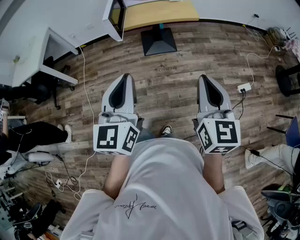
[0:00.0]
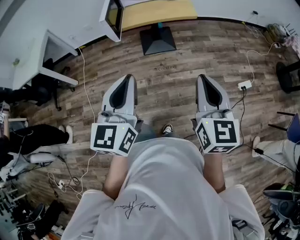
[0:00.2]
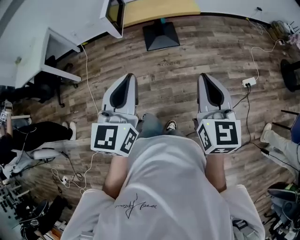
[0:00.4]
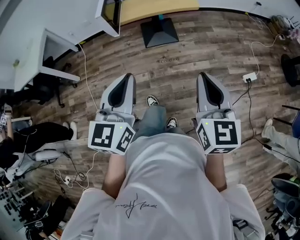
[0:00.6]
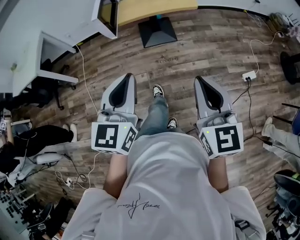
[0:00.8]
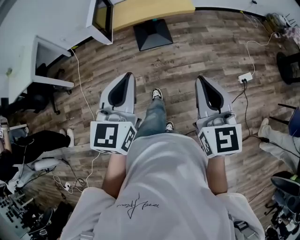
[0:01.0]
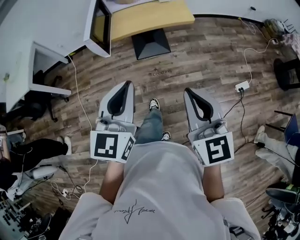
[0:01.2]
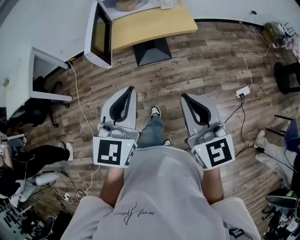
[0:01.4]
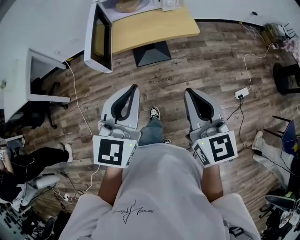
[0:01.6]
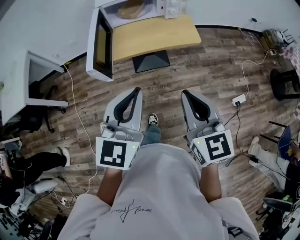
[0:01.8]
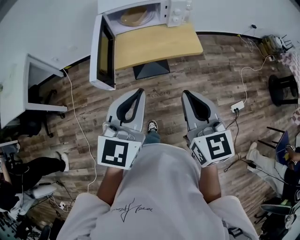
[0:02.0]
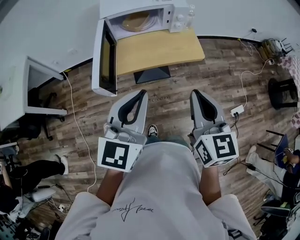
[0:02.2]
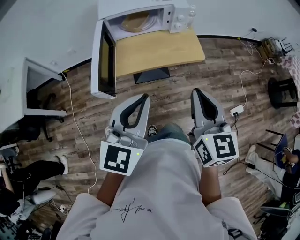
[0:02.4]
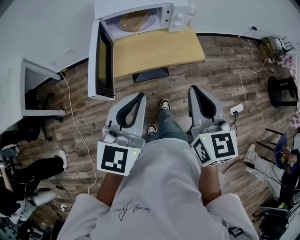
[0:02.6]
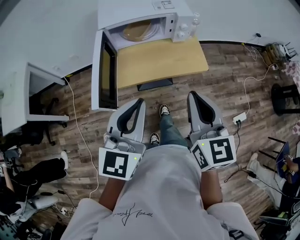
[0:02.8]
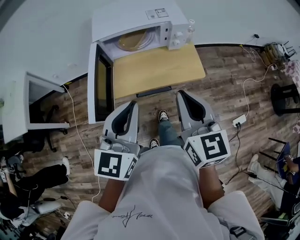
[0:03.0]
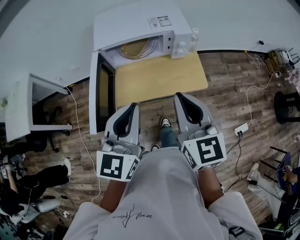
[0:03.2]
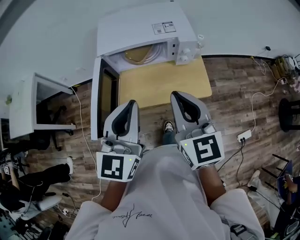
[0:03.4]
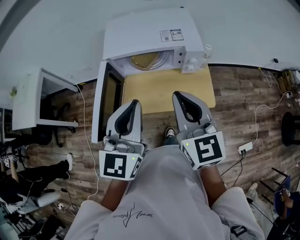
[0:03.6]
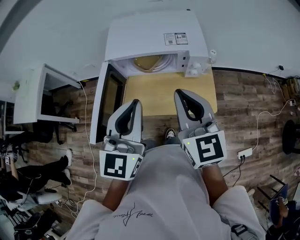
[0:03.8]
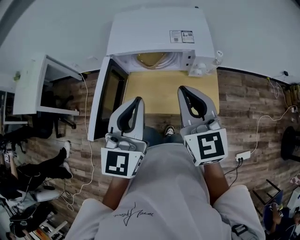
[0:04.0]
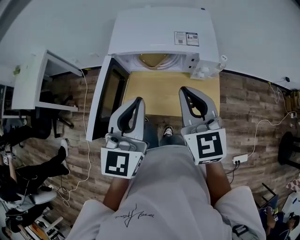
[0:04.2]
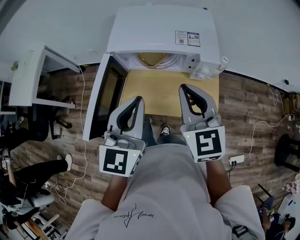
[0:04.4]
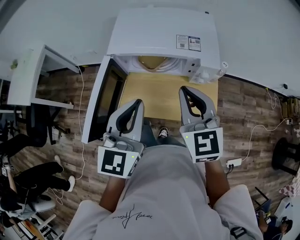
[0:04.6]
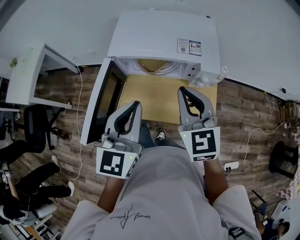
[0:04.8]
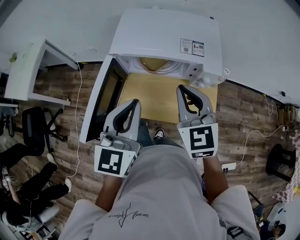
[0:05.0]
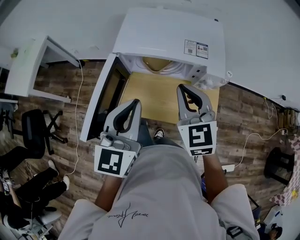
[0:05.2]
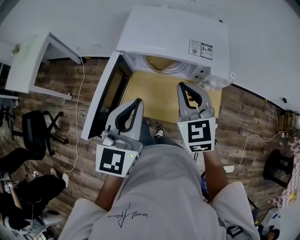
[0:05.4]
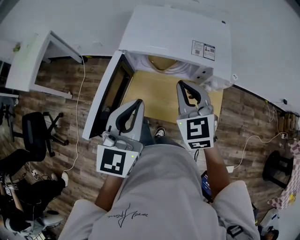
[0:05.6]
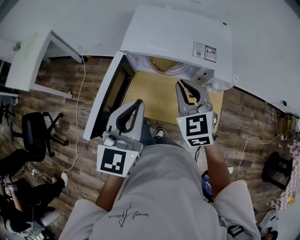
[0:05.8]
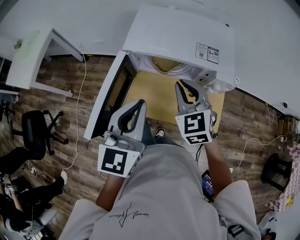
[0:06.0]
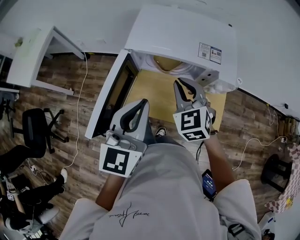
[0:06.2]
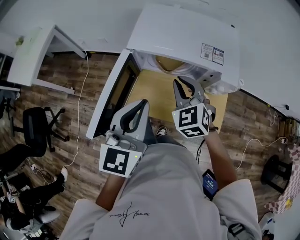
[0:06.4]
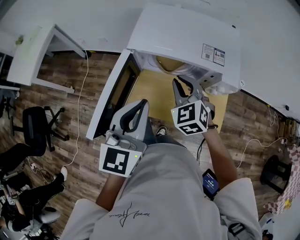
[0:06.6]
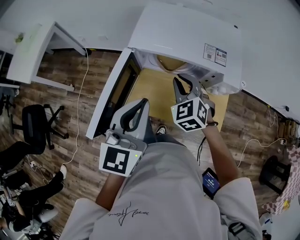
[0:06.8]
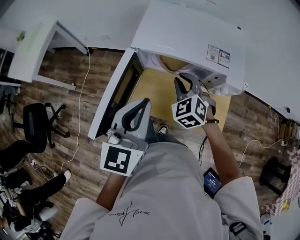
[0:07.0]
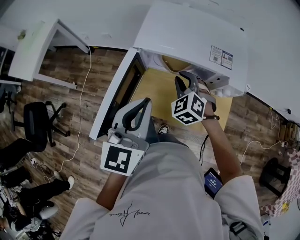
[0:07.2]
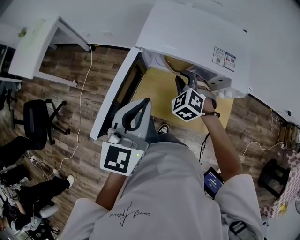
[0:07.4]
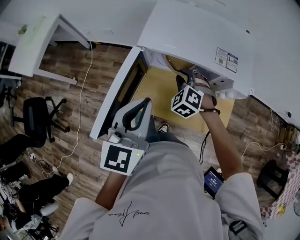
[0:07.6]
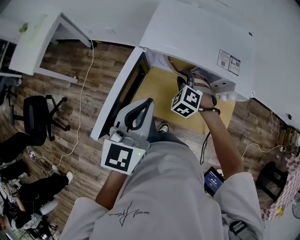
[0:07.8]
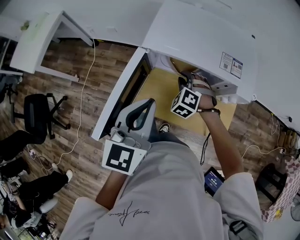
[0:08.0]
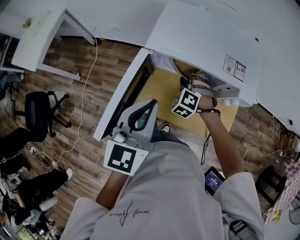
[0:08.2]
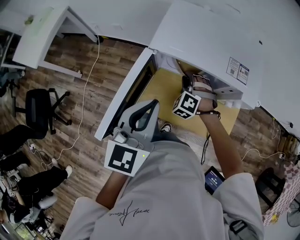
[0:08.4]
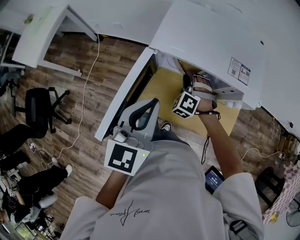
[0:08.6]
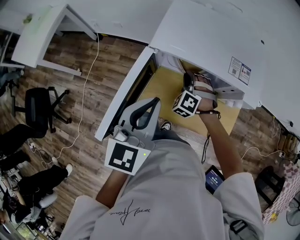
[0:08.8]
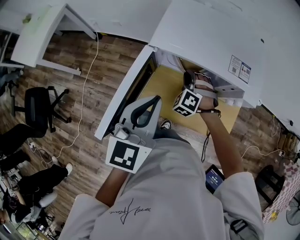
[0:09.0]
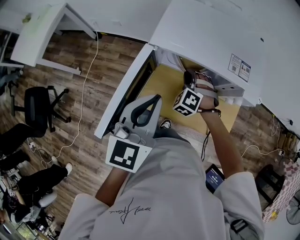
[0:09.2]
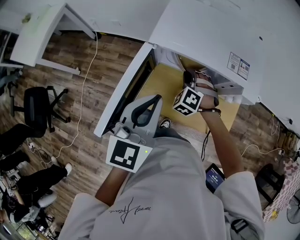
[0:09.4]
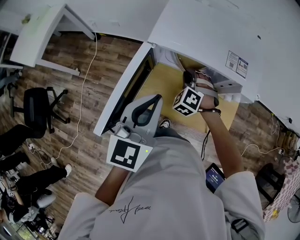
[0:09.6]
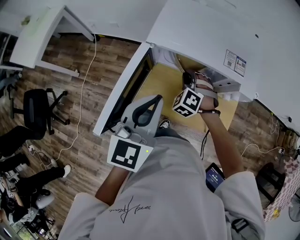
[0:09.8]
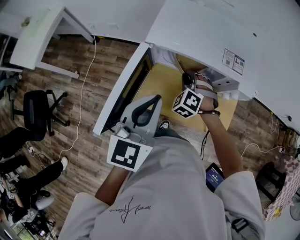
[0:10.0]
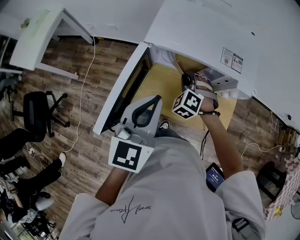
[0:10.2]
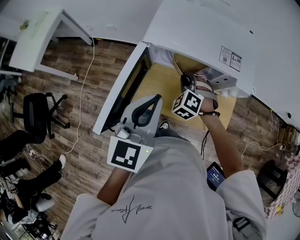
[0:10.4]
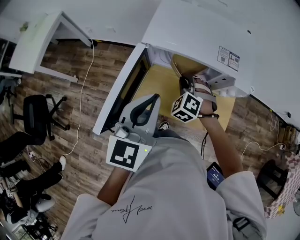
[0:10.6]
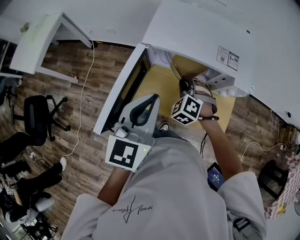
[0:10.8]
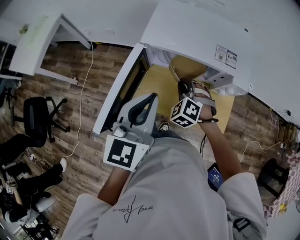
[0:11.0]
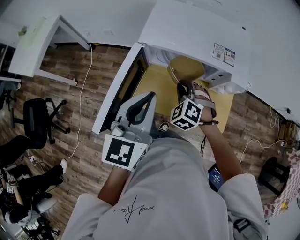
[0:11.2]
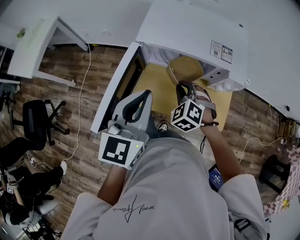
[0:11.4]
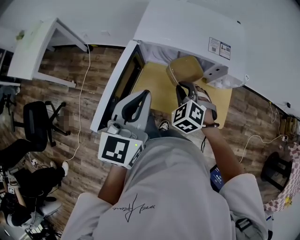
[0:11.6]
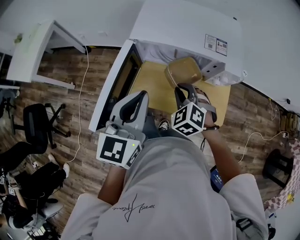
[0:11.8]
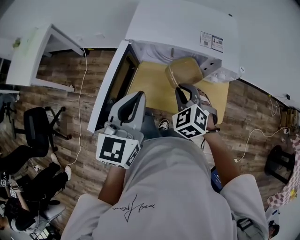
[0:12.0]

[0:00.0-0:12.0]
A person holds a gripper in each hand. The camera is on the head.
0:00.0 to 0:01.6: The grippers both shift forward by roughly 20 cm.
0:01.6 to 0:03.0: Both grippers travel together forward, roughly 25 cm.
0:03.0 to 0:04.4: Both grippers move forward, approximately 20 cm. The right gripper swivels roughly 20 degrees.
0:04.4 to 0:06.0: The right gripper heads forward, downward and to the left, covering some 10 cm, and changes its angle by about 20 degrees.
0:06.0 to 0:07.6: The right gripper moves downward and forward, approximately 15 cm, and swivels approximately 40 degrees.
0:07.6 to 0:09.0: The grippers stay close to where they were, moving slightly.
0:09.0 to 0:10.4: The right gripper moves roughly 5 cm.
0:10.4 to 0:12.0: The right gripper travels backward and upward by some 10 cm, and turns by some 20 degrees.

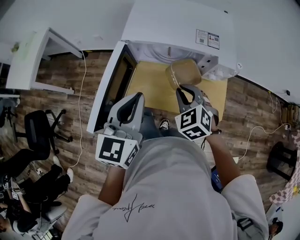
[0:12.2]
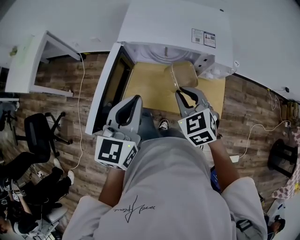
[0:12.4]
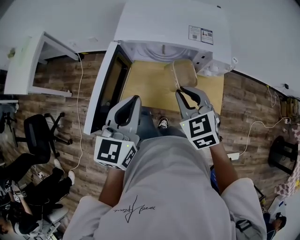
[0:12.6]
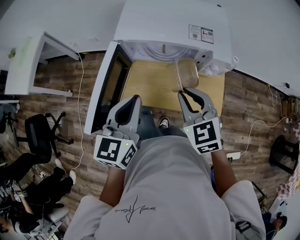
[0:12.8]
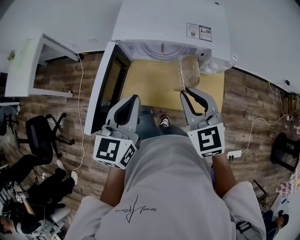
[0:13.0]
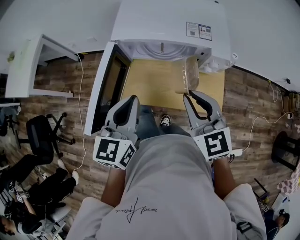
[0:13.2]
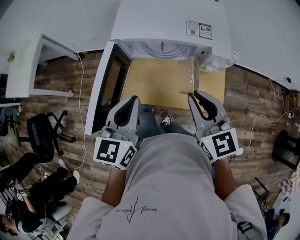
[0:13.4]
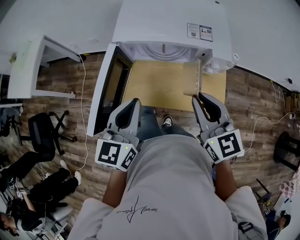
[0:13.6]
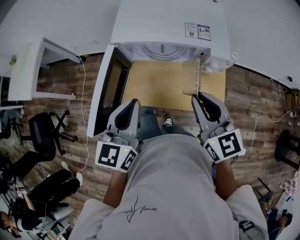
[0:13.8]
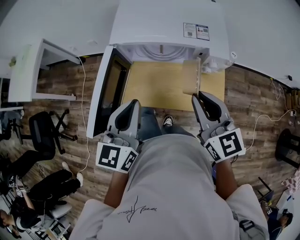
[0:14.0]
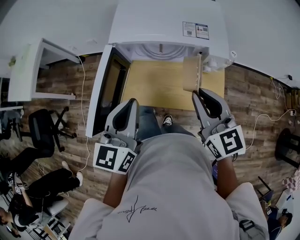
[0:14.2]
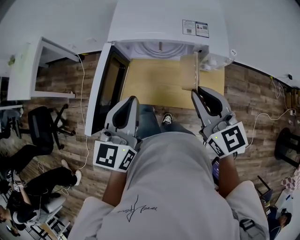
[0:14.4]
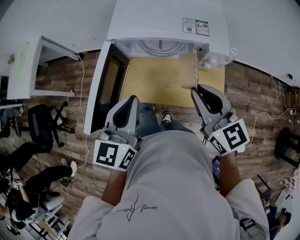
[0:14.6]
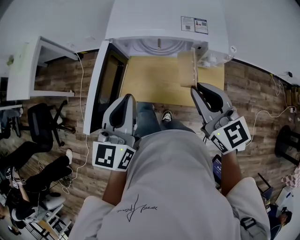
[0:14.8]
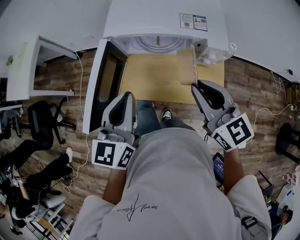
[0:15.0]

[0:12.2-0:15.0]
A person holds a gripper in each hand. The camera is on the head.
0:12.2 to 0:13.6: The right gripper travels upward, to the right and backward by approximately 15 cm, and rotates some 40 degrees.
0:13.6 to 0:15.0: There are only small adjustments of the grippers.

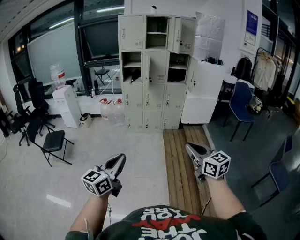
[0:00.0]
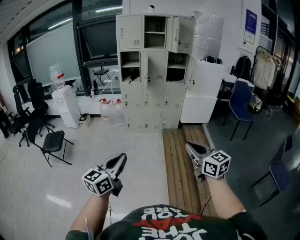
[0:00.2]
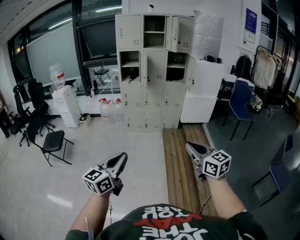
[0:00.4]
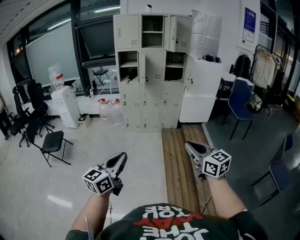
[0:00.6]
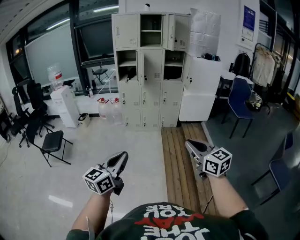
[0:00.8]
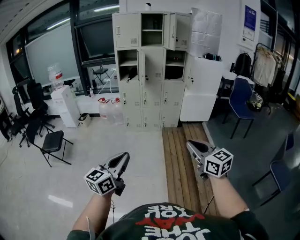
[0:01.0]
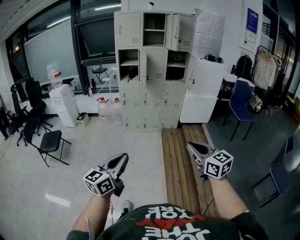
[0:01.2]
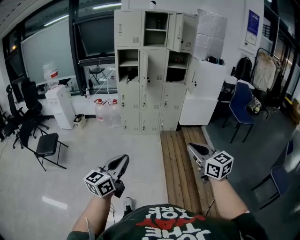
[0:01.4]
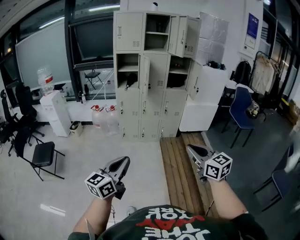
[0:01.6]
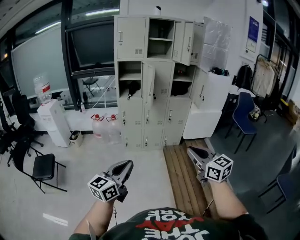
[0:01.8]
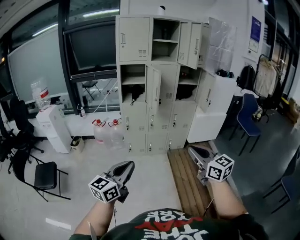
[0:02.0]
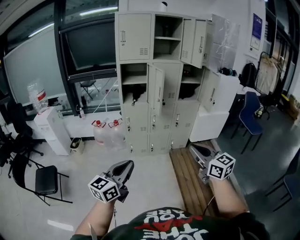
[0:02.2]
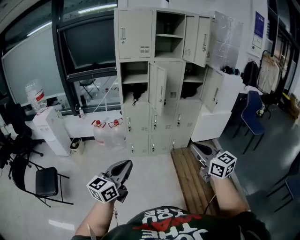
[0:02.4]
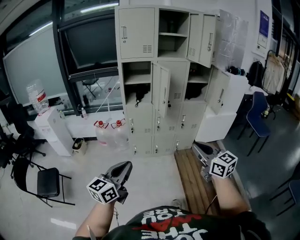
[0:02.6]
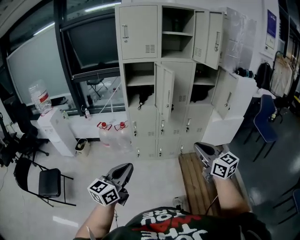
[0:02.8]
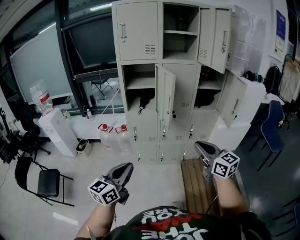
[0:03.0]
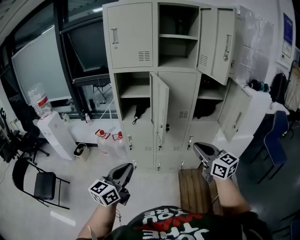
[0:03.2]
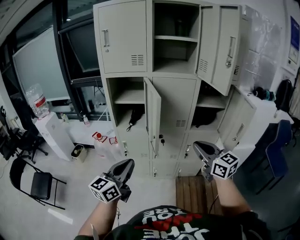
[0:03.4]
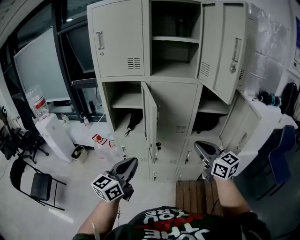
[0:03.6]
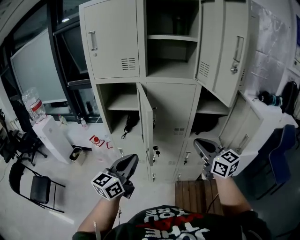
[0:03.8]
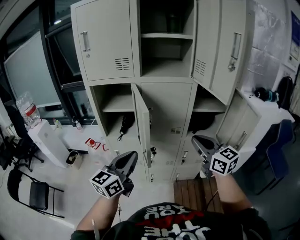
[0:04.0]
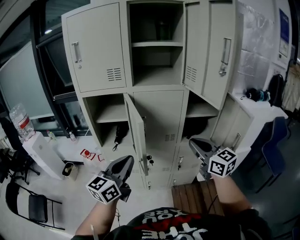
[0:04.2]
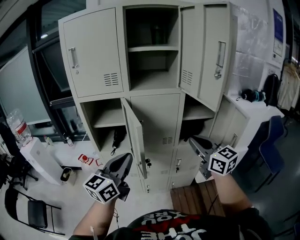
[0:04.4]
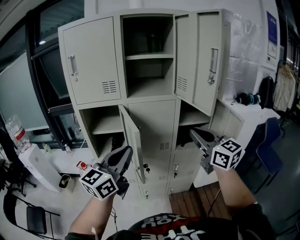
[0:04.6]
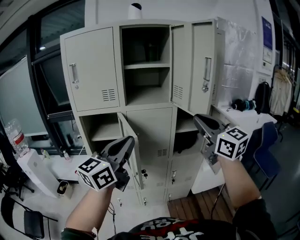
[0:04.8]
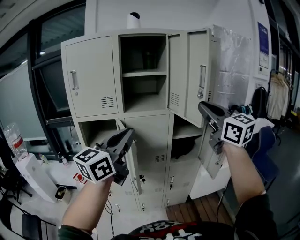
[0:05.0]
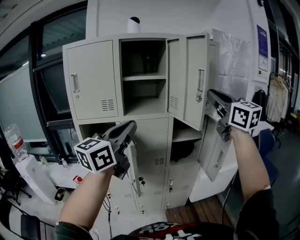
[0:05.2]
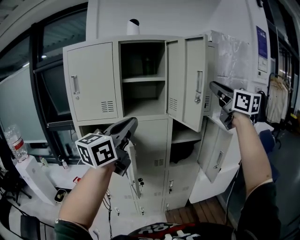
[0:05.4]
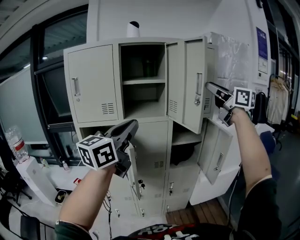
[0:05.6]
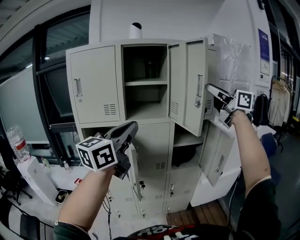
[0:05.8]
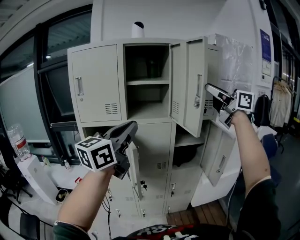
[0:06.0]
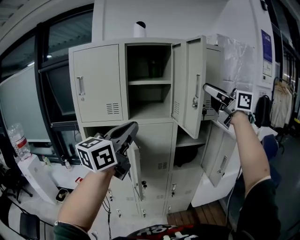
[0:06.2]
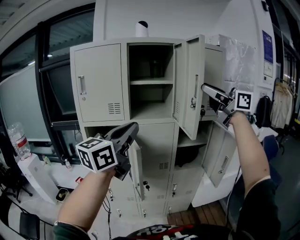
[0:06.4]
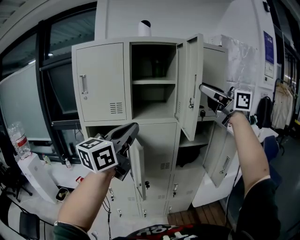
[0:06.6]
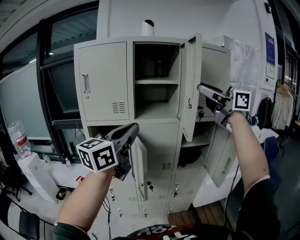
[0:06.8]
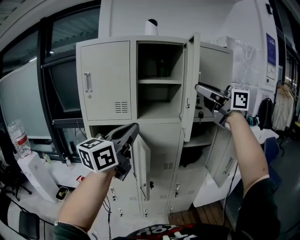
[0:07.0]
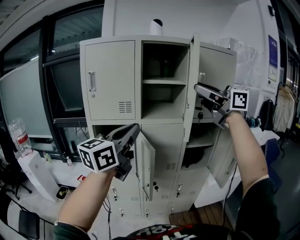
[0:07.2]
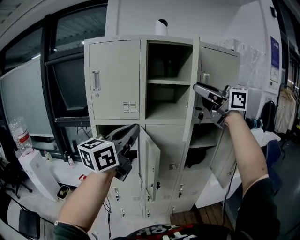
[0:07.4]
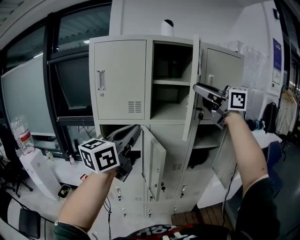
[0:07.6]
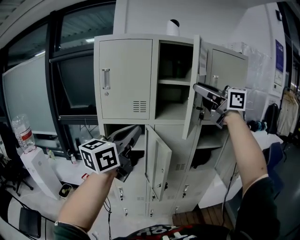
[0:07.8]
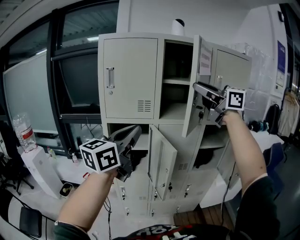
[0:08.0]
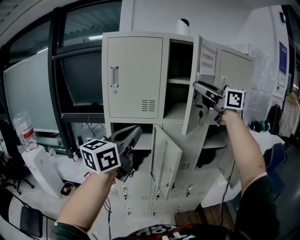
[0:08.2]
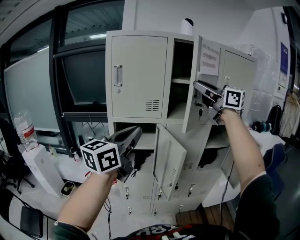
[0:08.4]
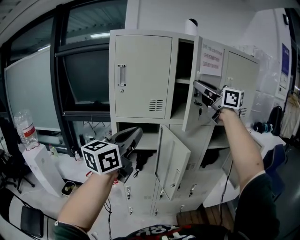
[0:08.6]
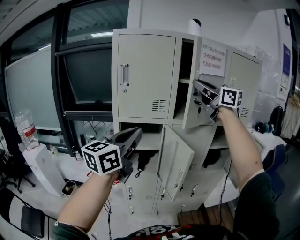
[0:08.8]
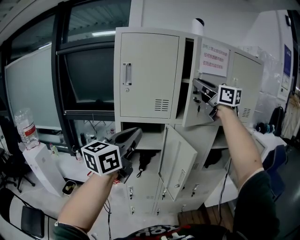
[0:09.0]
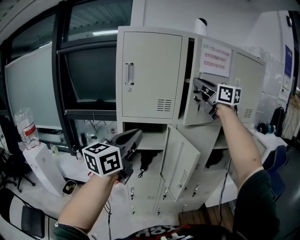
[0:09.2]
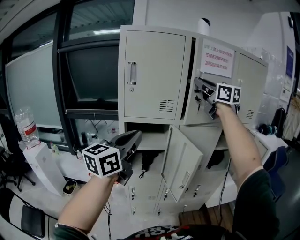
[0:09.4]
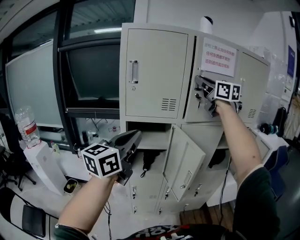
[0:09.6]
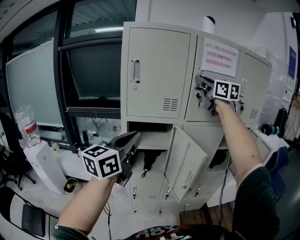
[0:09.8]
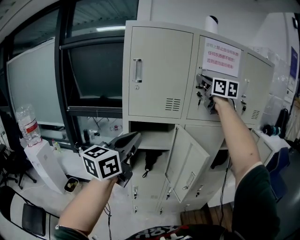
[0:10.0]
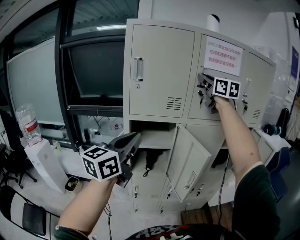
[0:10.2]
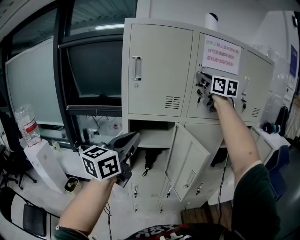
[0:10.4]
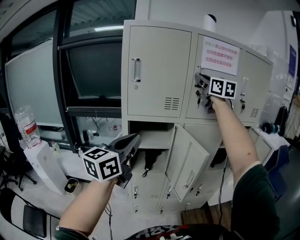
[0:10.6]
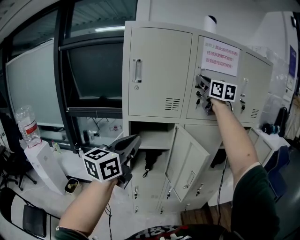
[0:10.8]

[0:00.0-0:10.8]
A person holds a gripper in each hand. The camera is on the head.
0:00.0 to 0:01.6: The grippers both shift forward by roughly 20 cm.
0:01.6 to 0:03.0: The pair of grippers is taken forward, some 50 cm.
0:03.0 to 0:04.6: The right gripper is displaced forward, upward and to the right by approximately 35 cm. Meanwhile the left gripper heads forward, to the right and upward, covering about 40 cm.
0:04.6 to 0:06.2: The right gripper goes approximately 25 cm upward, turns by some 20 degrees, and opens up; the left gripper goes about 15 cm upward.
0:06.2 to 0:07.8: The two grippers go roughly 15 cm to the left.
0:07.8 to 0:09.2: The right gripper goes roughly 15 cm forward and to the left. The left gripper heads to the left, covering some 10 cm.
0:09.2 to 0:10.8: The right gripper is displaced forward by about 5 cm. The left gripper moves some 5 cm.
